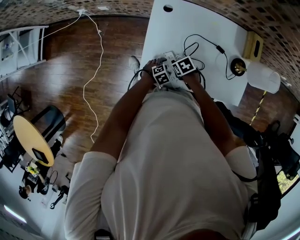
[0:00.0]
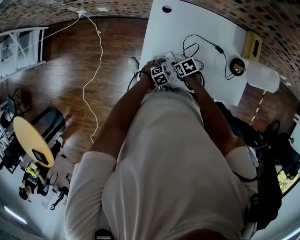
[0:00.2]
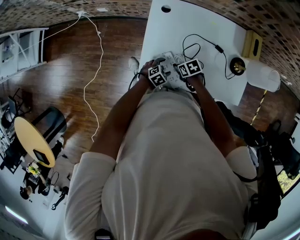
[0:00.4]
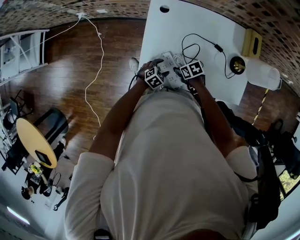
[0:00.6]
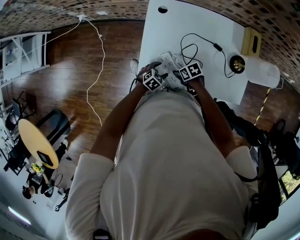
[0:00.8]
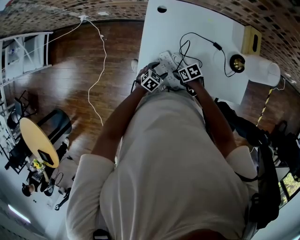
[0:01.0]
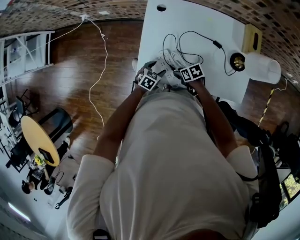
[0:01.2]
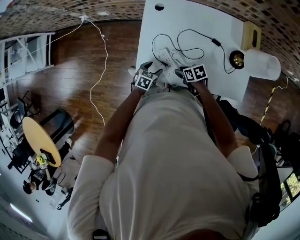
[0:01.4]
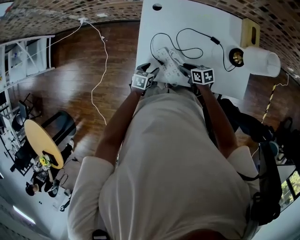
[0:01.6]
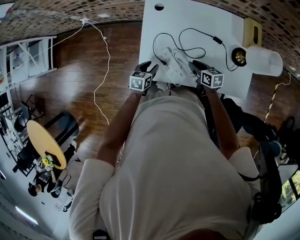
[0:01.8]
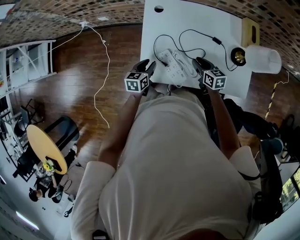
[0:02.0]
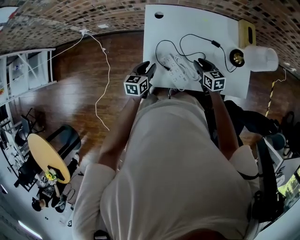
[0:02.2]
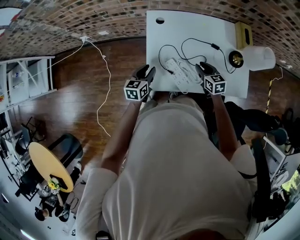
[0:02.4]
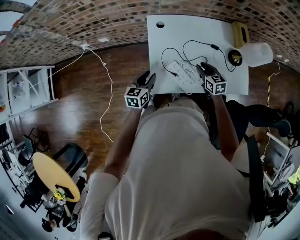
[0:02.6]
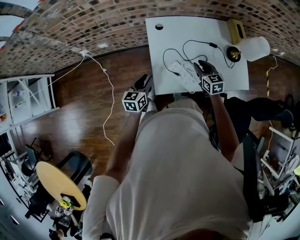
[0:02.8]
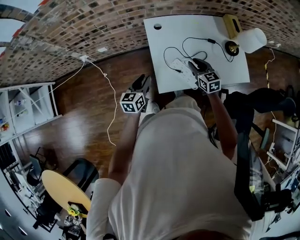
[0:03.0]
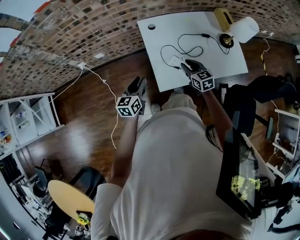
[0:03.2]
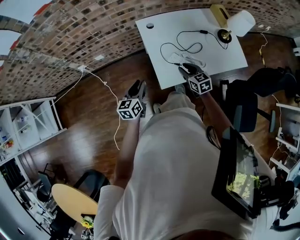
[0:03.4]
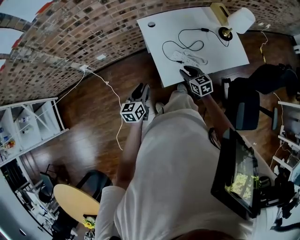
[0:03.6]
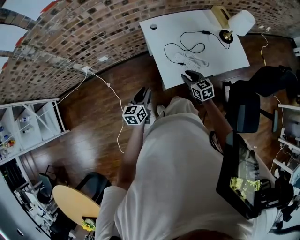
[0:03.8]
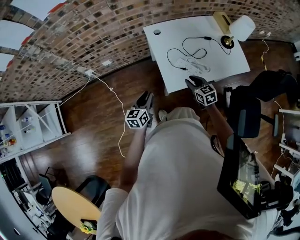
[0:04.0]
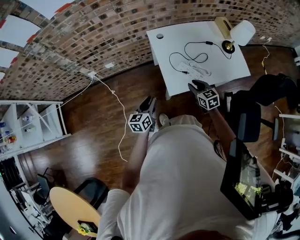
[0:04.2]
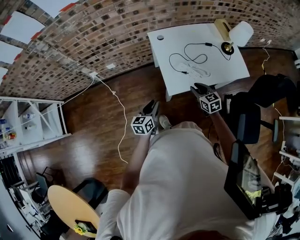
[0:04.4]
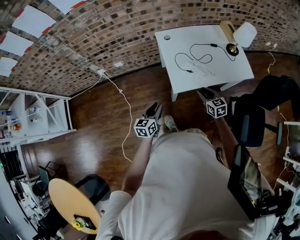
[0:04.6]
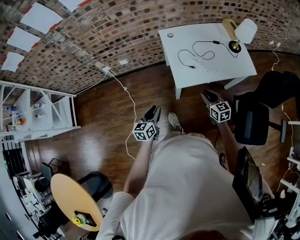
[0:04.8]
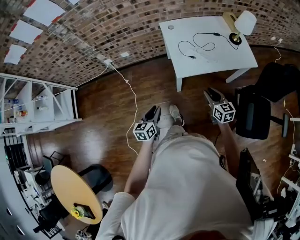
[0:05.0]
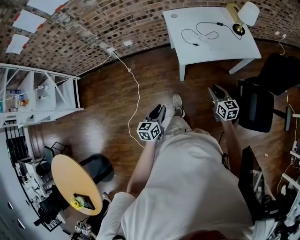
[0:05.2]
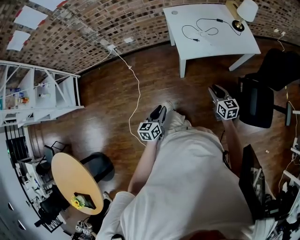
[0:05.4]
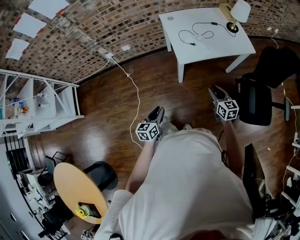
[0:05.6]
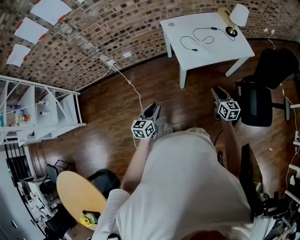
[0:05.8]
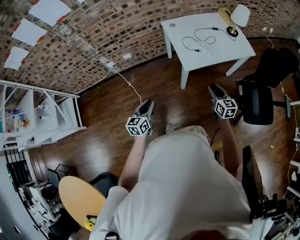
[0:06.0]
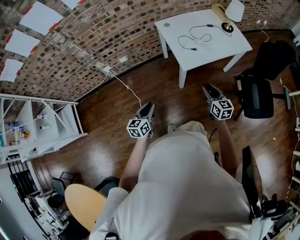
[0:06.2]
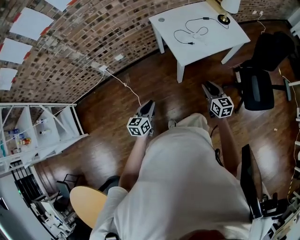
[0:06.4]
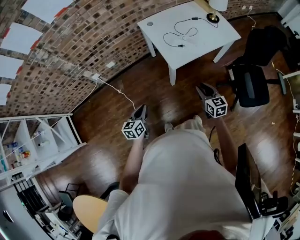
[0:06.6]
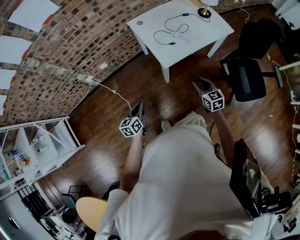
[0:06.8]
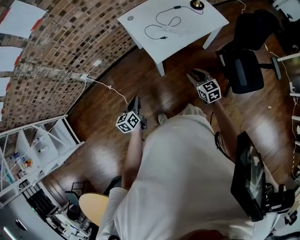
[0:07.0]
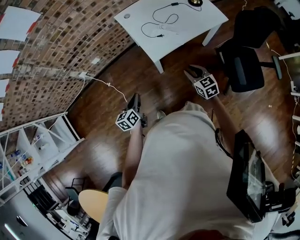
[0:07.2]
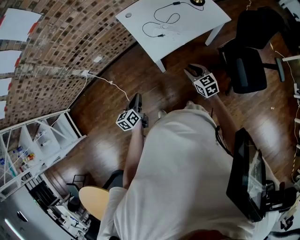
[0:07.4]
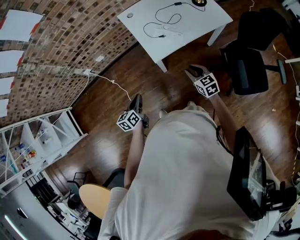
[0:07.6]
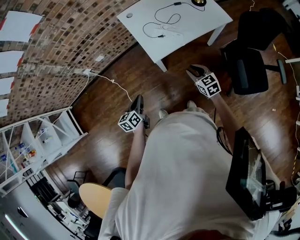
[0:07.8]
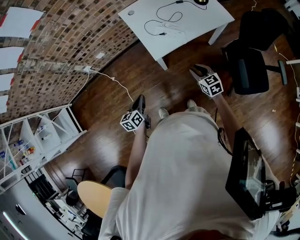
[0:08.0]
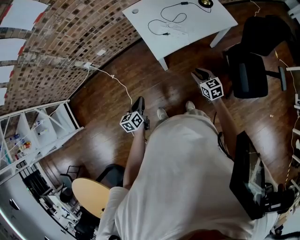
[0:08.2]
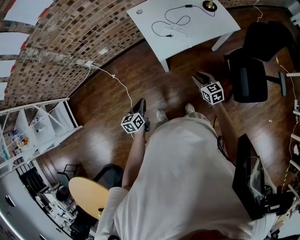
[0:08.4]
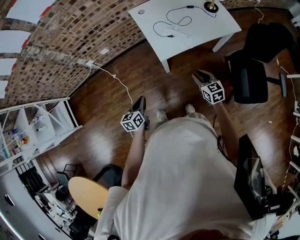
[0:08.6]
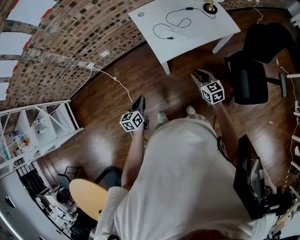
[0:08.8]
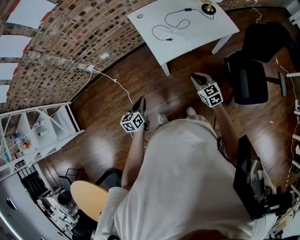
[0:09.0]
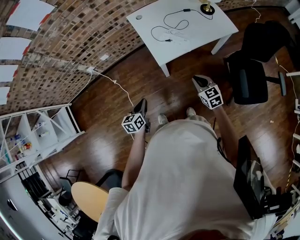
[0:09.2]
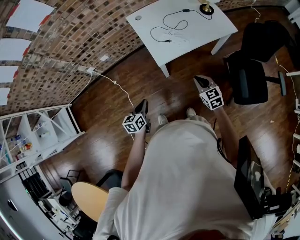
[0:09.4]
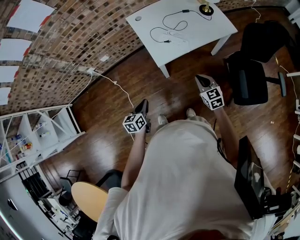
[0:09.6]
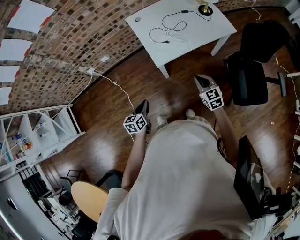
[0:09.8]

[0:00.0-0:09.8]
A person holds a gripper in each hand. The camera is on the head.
0:00.0 to 0:01.4: The left gripper heads upward, covering approximately 5 cm, and turns by roughly 40 degrees. Meanwhile the right gripper shifts by roughly 10 cm, swivels about 20 degrees, and opens its fingers.
0:01.4 to 0:02.8: The grippers both shift upward by about 20 cm. The left gripper swivels about 30 degrees, and closes; the right gripper swivels roughly 50 degrees.
0:02.8 to 0:04.2: The grippers both shift backward and to the left by some 15 cm.
0:04.2 to 0:05.6: The two grippers go roughly 30 cm backward.
0:05.6 to 0:07.0: The left gripper heads forward, covering some 15 cm, while the right gripper heads forward, covering approximately 5 cm, and reaches approximately 10 cm to the left, then returns.
0:07.0 to 0:08.4: The right gripper shifts by some 5 cm, while the left gripper goes roughly 5 cm backward.
0:08.4 to 0:09.8: The right gripper closes up.

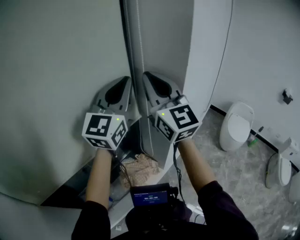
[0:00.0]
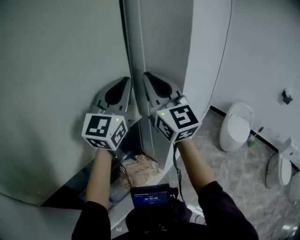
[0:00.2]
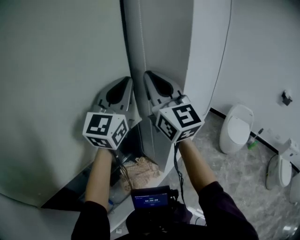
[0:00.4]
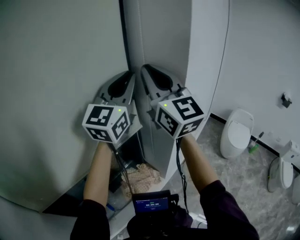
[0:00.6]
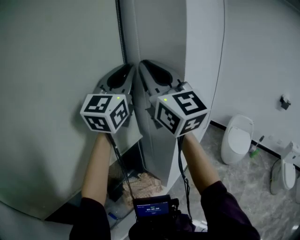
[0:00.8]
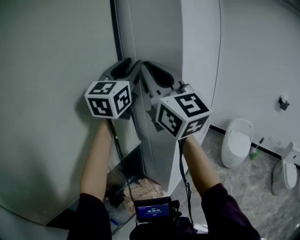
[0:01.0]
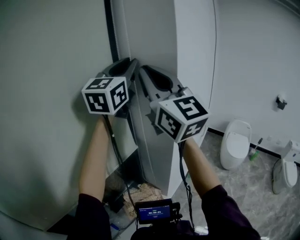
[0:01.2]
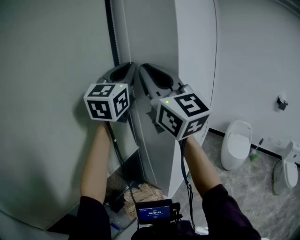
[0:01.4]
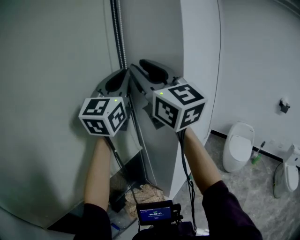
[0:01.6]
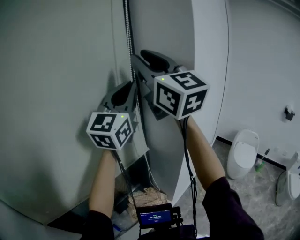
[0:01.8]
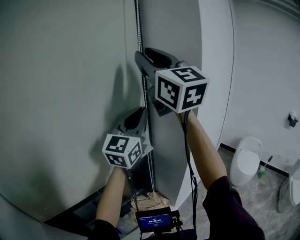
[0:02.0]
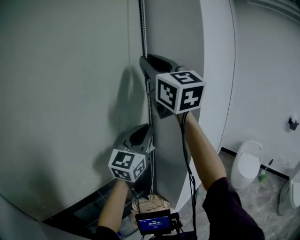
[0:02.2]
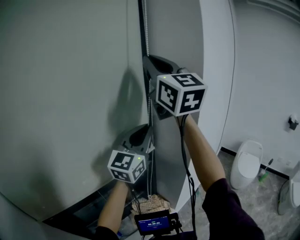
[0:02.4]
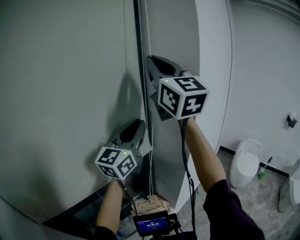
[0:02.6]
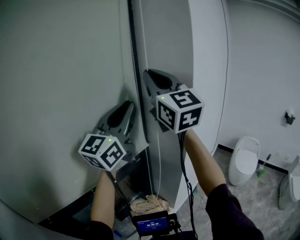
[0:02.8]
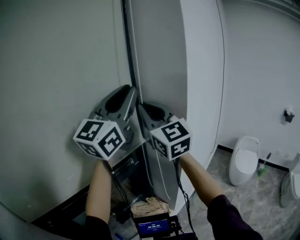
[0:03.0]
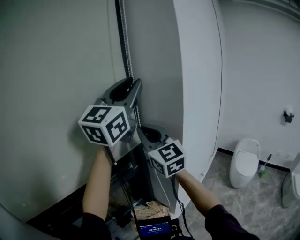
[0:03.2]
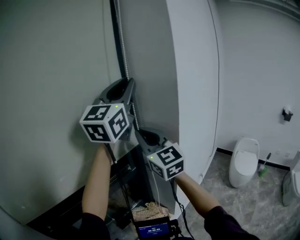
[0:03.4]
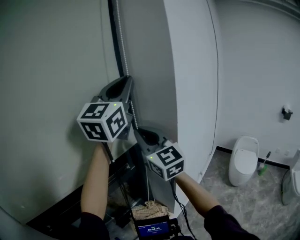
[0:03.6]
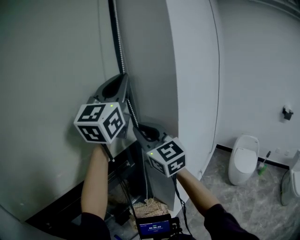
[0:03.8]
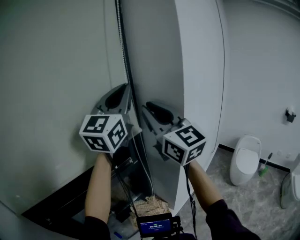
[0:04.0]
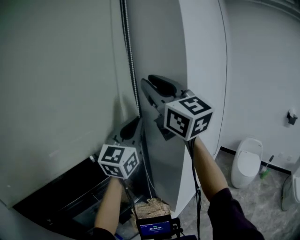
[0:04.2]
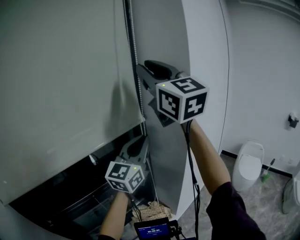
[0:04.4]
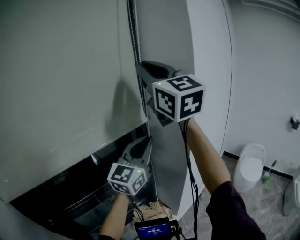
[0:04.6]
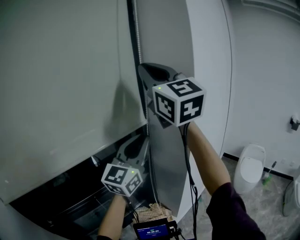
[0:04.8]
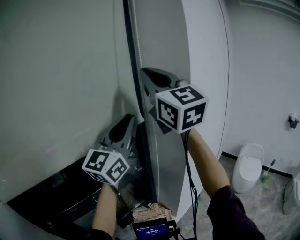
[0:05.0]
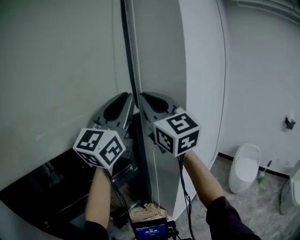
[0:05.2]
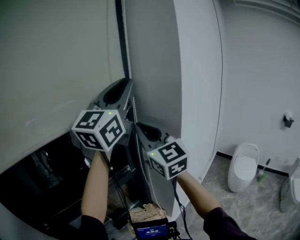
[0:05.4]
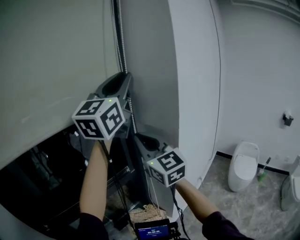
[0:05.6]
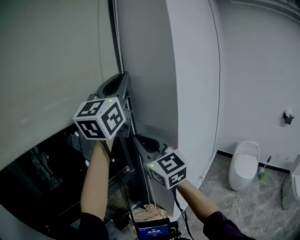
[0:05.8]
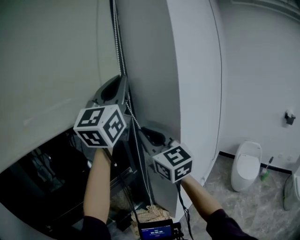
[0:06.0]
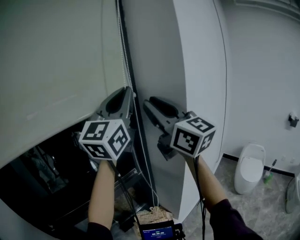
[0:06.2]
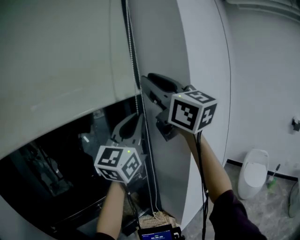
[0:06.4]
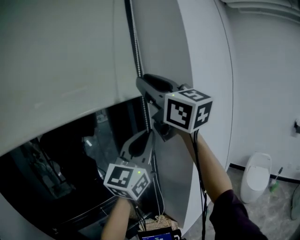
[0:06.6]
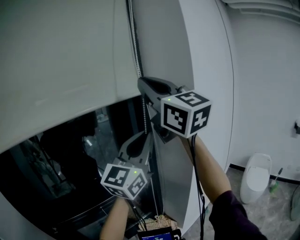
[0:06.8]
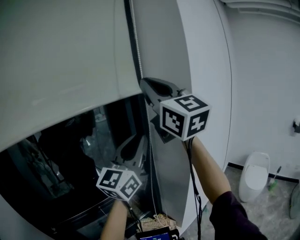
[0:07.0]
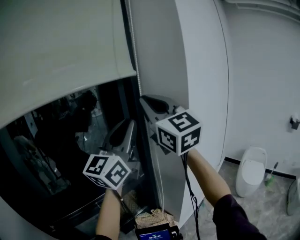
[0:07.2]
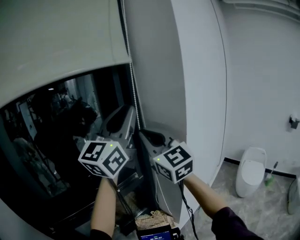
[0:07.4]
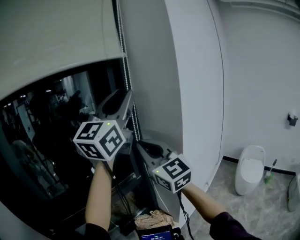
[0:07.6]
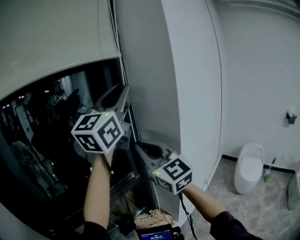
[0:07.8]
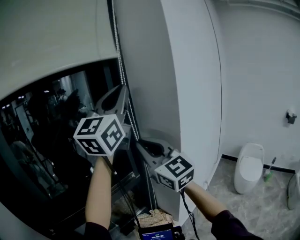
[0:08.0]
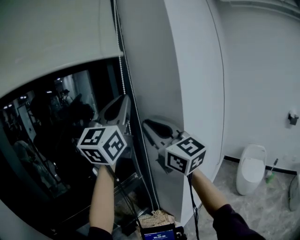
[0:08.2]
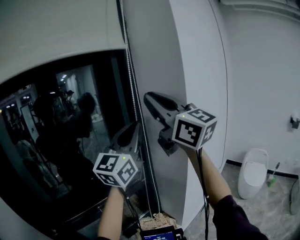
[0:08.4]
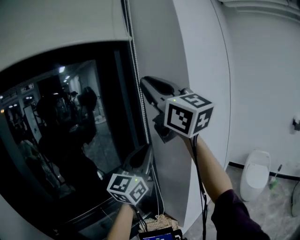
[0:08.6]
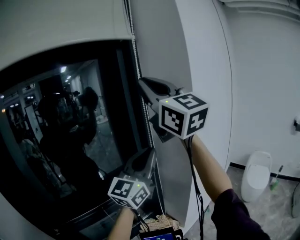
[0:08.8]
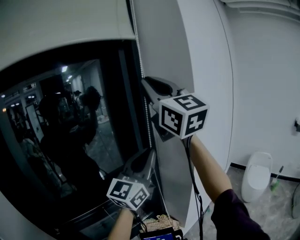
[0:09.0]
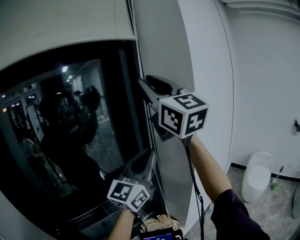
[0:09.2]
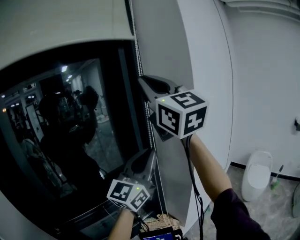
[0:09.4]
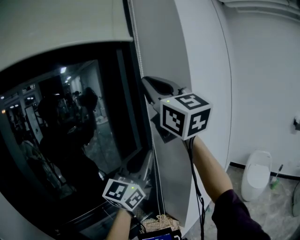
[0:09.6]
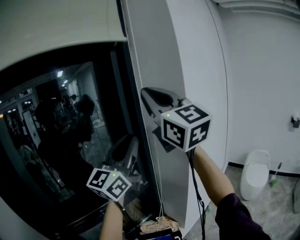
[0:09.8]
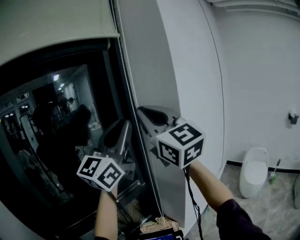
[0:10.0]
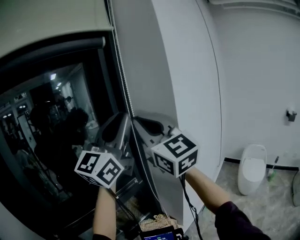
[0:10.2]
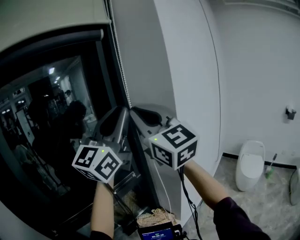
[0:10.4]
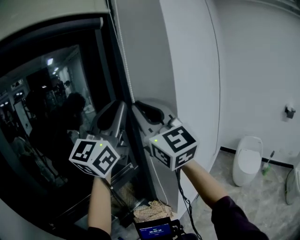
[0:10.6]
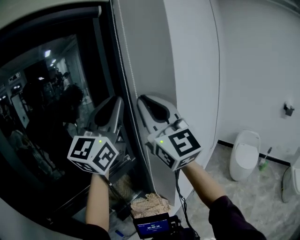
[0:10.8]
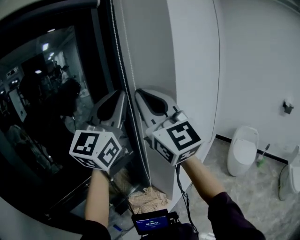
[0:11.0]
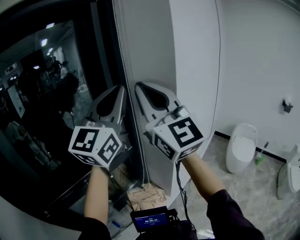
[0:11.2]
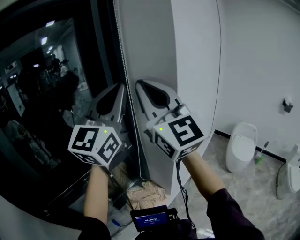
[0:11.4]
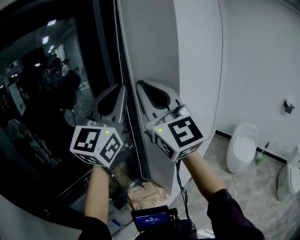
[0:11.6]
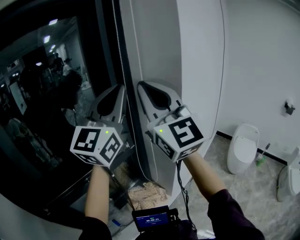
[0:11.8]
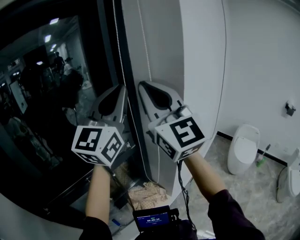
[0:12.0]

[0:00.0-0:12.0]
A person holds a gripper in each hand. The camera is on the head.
0:00.0 to 0:01.6: The grippers both shift upward by roughly 15 cm. The right gripper opens up.
0:01.6 to 0:03.0: The right gripper shifts some 5 cm downward. Meanwhile the left gripper travels backward by about 5 cm, and travels downward and back again, some 10 cm each way.
0:03.0 to 0:04.4: The right gripper shifts approximately 15 cm upward. Meanwhile the left gripper is displaced downward by some 15 cm.
0:04.4 to 0:06.0: The right gripper heads downward, covering about 20 cm. The left gripper travels upward by roughly 20 cm.
0:06.0 to 0:07.6: The left gripper travels downward and back again, some 15 cm each way. Meanwhile the right gripper goes upward and returns, roughly 20 cm each way.
0:07.6 to 0:09.0: The right gripper moves upward, some 20 cm, while the left gripper is displaced downward by approximately 15 cm.
0:09.0 to 0:10.4: The left gripper goes approximately 15 cm upward. The right gripper moves downward, roughly 10 cm.
0:10.4 to 0:12.0: The left gripper shifts roughly 5 cm downward.

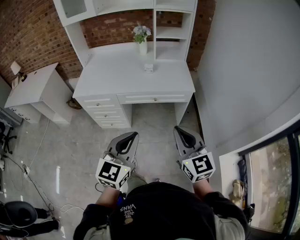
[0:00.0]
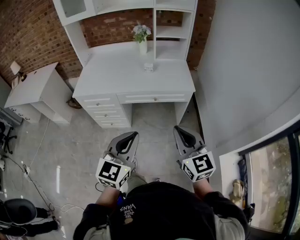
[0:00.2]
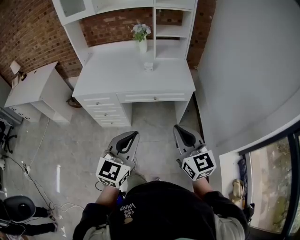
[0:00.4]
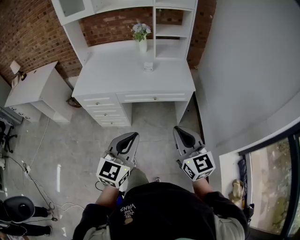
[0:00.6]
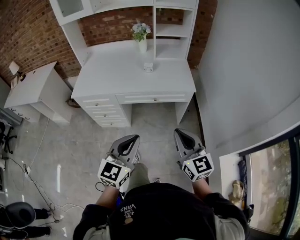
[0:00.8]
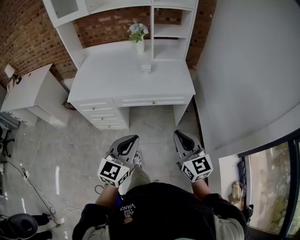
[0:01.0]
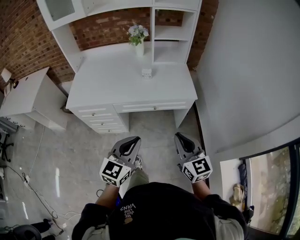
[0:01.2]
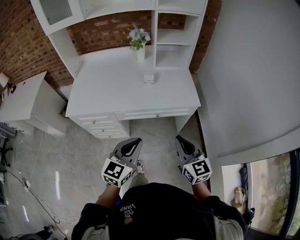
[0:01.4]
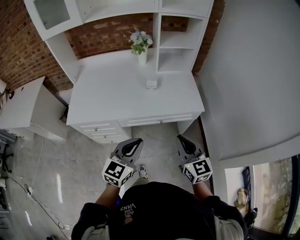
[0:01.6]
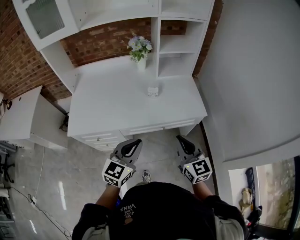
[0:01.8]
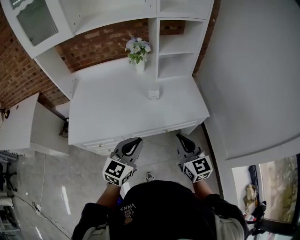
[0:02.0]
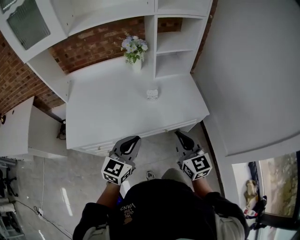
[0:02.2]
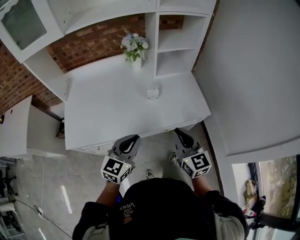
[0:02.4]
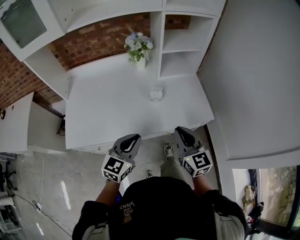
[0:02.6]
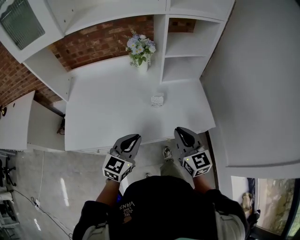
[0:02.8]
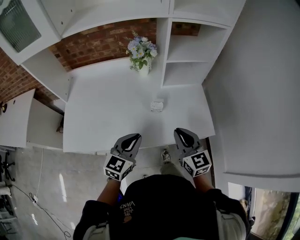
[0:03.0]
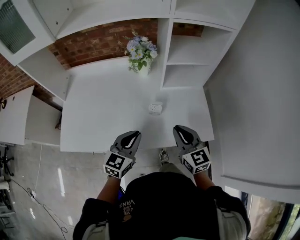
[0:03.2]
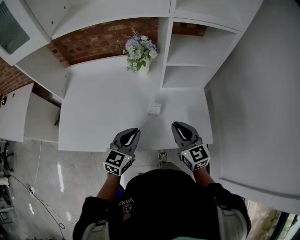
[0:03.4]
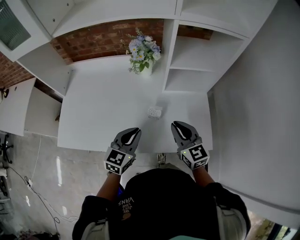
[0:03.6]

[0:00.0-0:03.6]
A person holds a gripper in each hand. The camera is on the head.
0:00.0 to 0:01.8: Both grippers move forward, approximately 25 cm.
0:01.8 to 0:03.6: The grippers both shift forward by approximately 30 cm.
